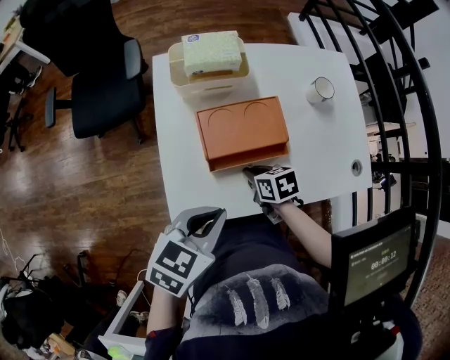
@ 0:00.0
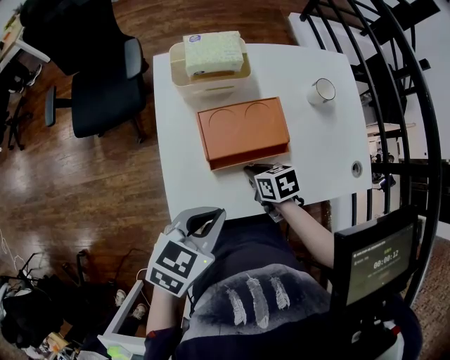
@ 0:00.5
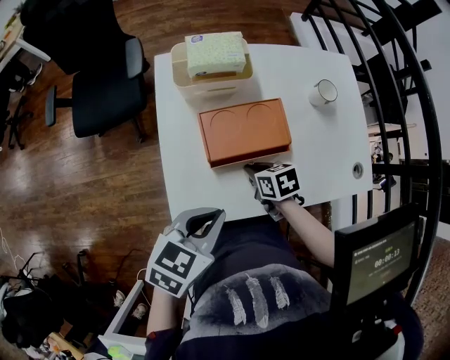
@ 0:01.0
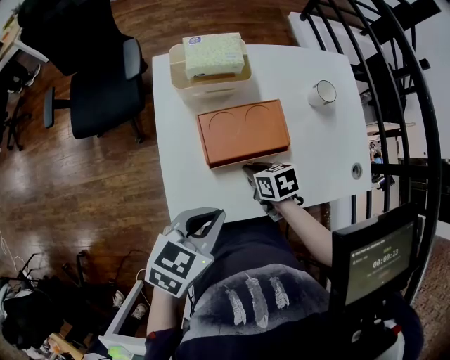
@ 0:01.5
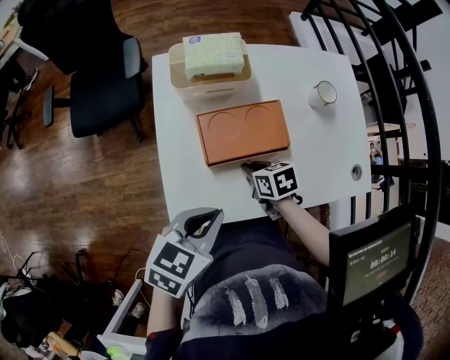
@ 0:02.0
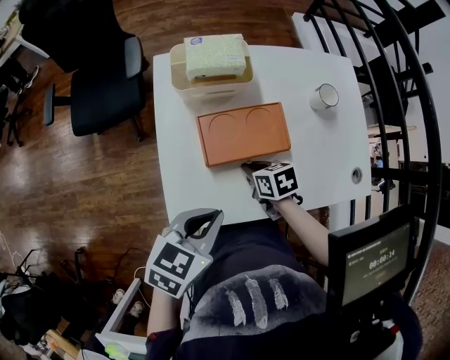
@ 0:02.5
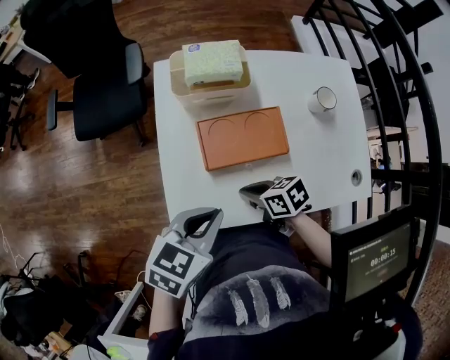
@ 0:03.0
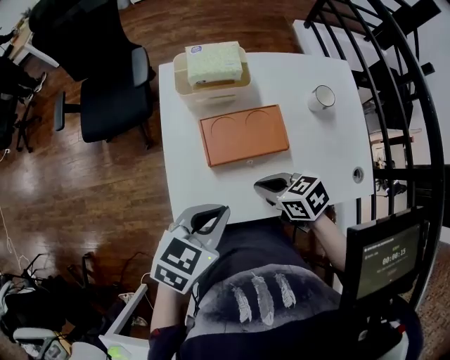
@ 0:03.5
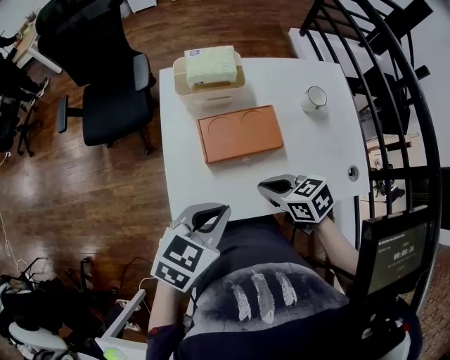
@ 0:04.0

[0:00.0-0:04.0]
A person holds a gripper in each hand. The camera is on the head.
0:00.0 to 0:02.0: There are only small adjustments of the grippers.
0:02.0 to 0:04.0: The left gripper moves about 5 cm. The right gripper travels upward by about 10 cm, and turns by about 20 degrees.

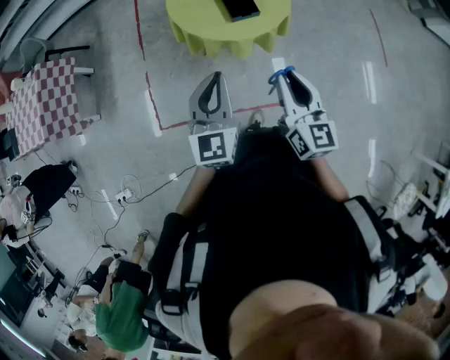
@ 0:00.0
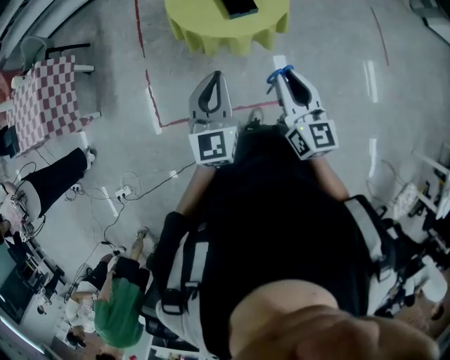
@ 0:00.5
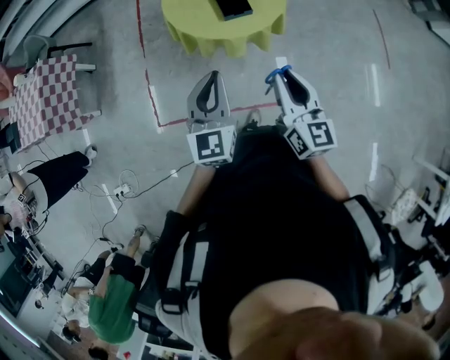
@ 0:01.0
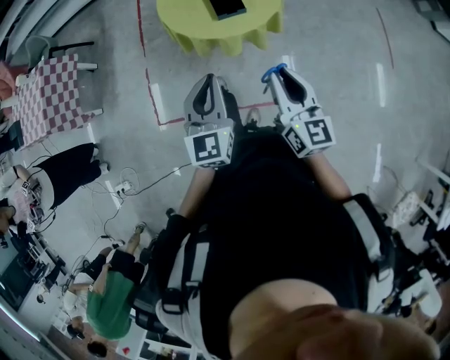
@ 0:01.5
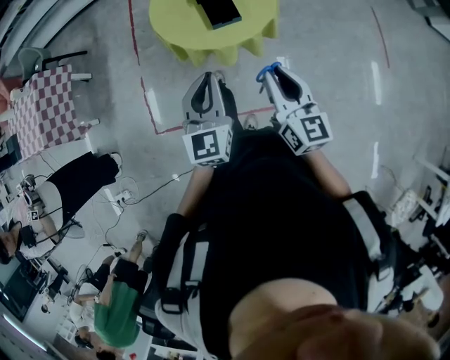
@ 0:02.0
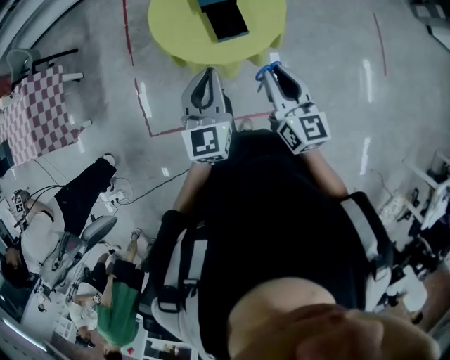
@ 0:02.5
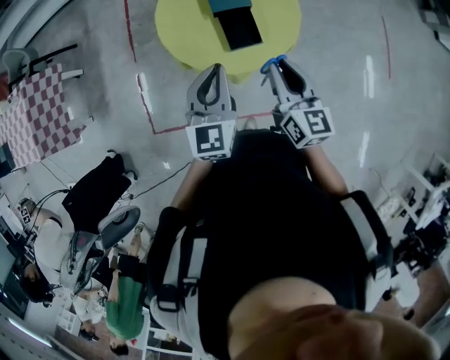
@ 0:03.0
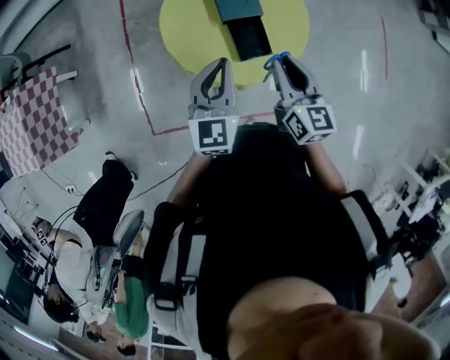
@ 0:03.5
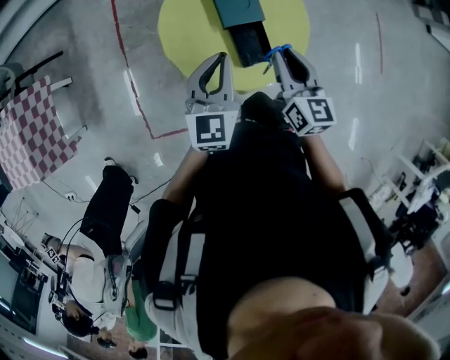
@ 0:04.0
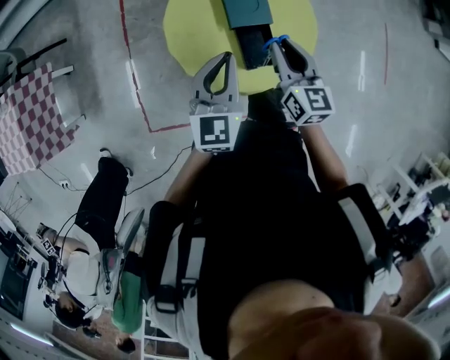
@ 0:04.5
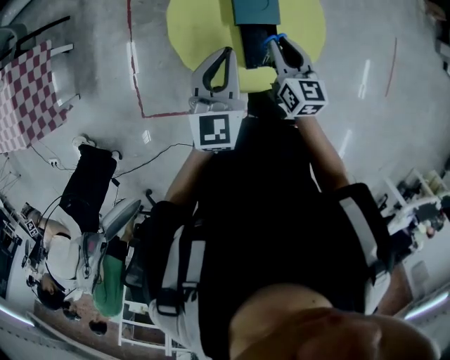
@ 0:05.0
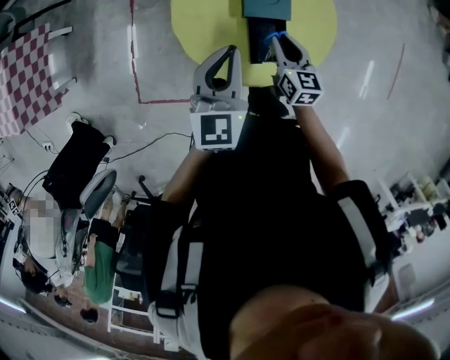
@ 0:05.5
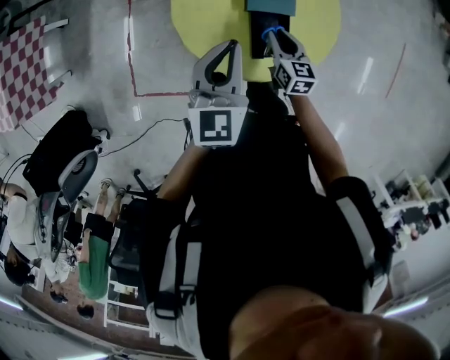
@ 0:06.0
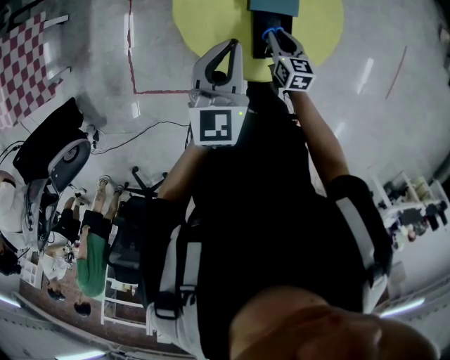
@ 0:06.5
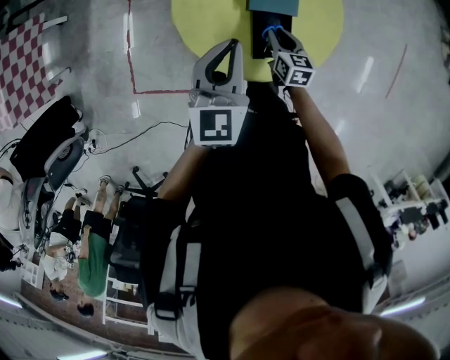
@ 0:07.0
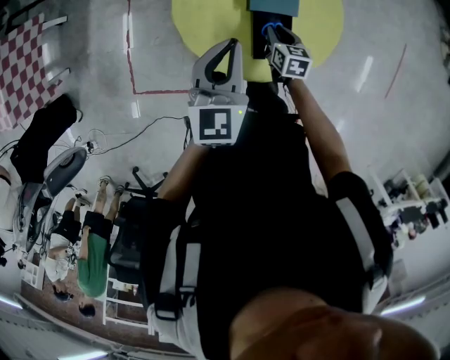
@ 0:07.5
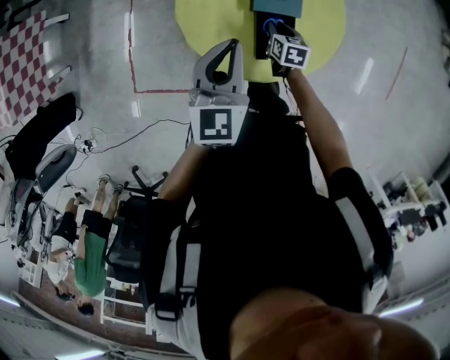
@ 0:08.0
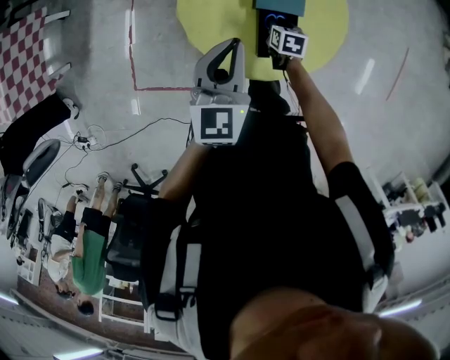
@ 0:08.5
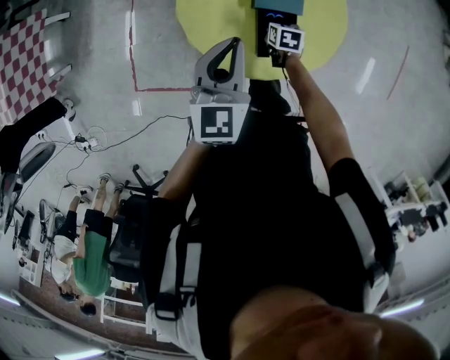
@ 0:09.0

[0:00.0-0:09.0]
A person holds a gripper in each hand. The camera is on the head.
0:00.0 to 0:02.0: Both grippers move to the right and forward, some 10 cm.
0:02.0 to 0:04.5: The grippers both shift forward by approximately 40 cm.
0:04.5 to 0:07.0: The right gripper is displaced downward by some 25 cm, and rotates about 20 degrees.
0:07.0 to 0:09.0: The right gripper is displaced downward by approximately 10 cm, and swivels roughly 20 degrees.

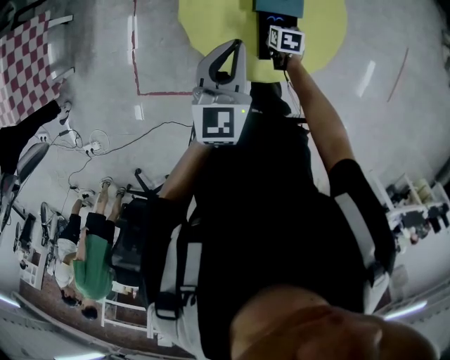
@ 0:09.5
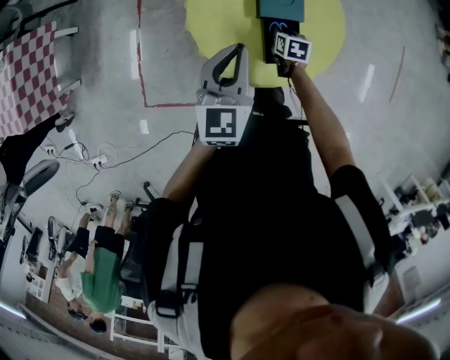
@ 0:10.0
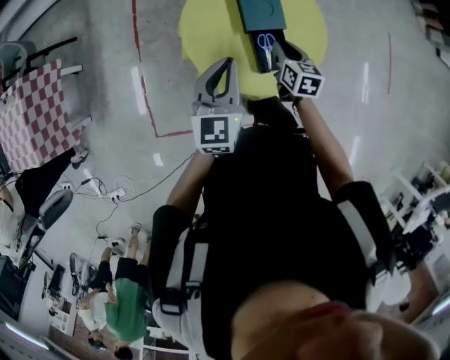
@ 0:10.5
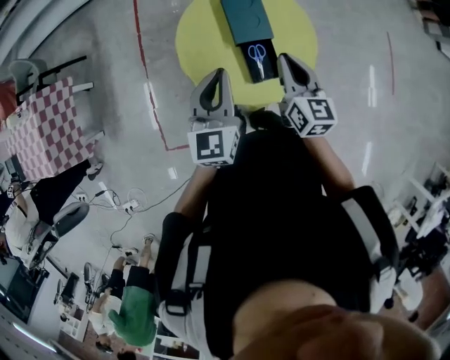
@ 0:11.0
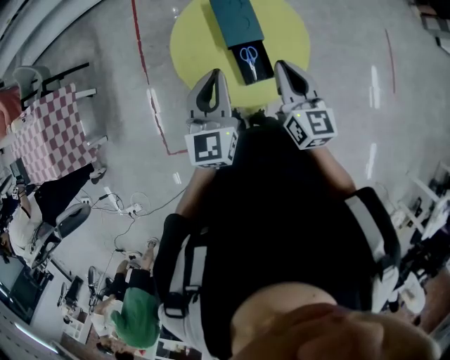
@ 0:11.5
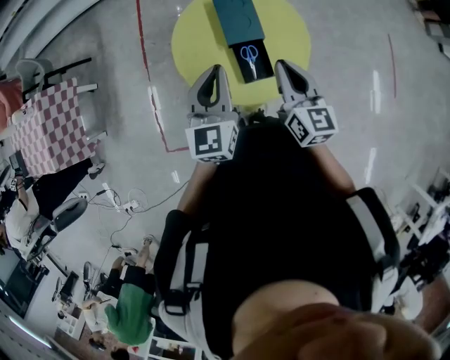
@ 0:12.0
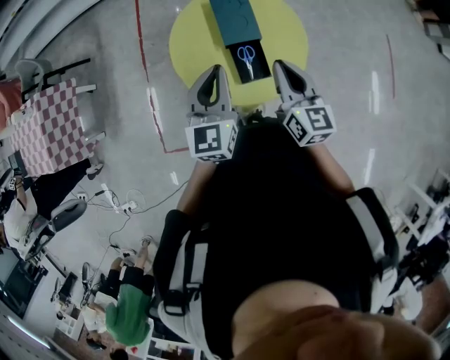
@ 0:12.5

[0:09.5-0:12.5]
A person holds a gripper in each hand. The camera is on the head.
0:09.5 to 0:11.0: The right gripper goes some 35 cm upward, and tilts its fingers some 50 degrees upward. Meanwhile the left gripper is displaced upward by approximately 10 cm.
0:11.0 to 0:12.5: The left gripper heads to the right, covering about 5 cm, while the right gripper ends up roughly 5 cm from where it was.

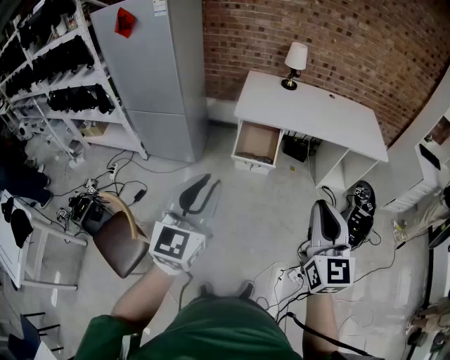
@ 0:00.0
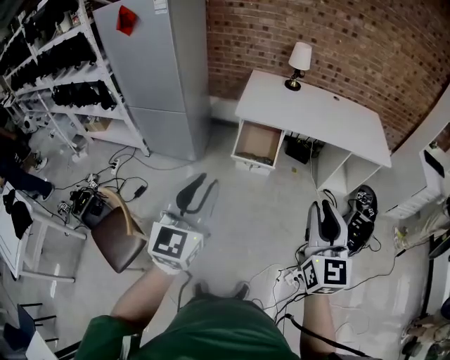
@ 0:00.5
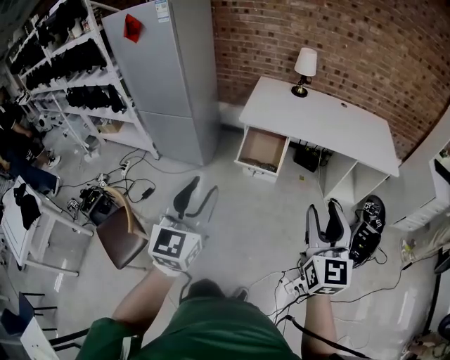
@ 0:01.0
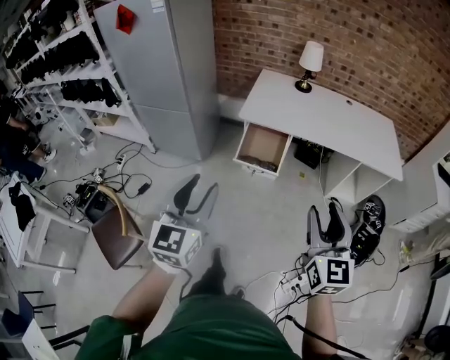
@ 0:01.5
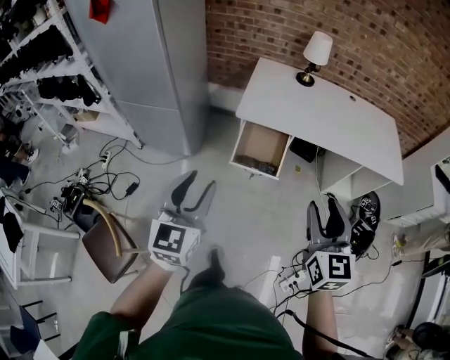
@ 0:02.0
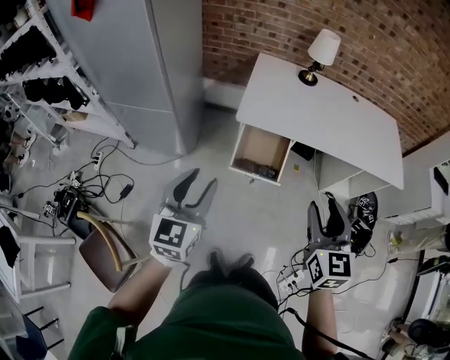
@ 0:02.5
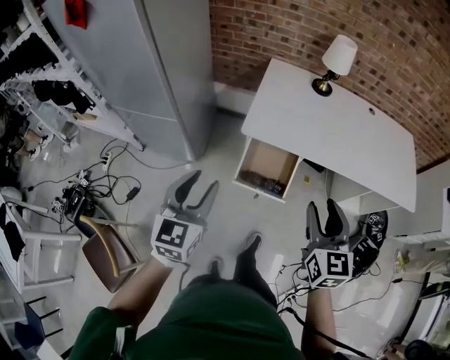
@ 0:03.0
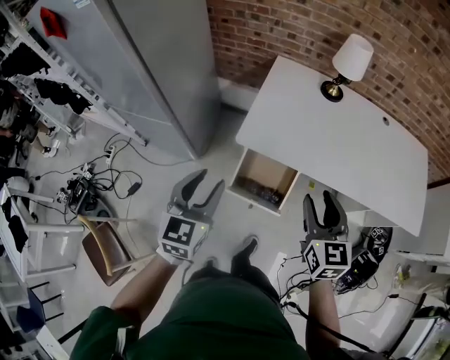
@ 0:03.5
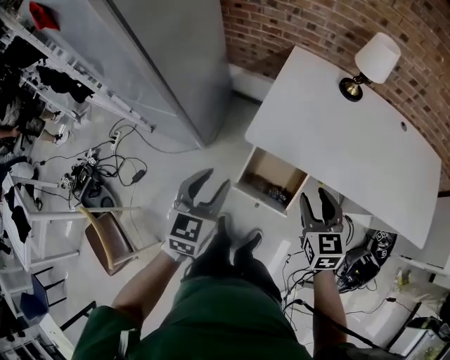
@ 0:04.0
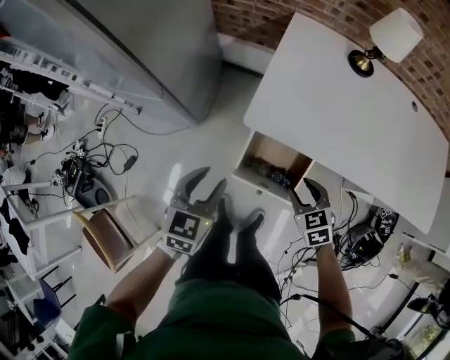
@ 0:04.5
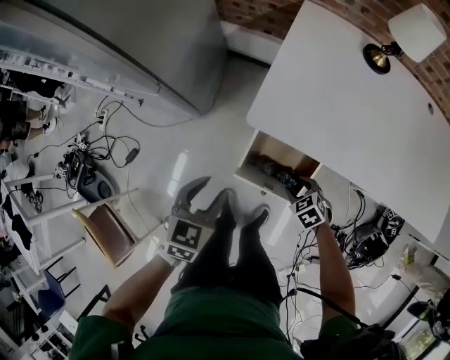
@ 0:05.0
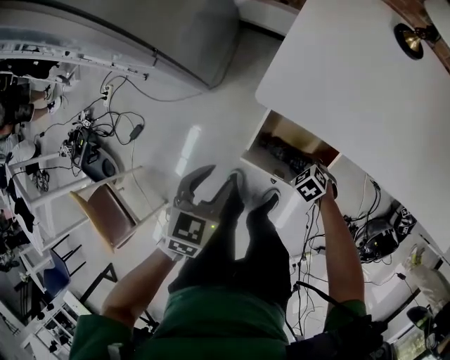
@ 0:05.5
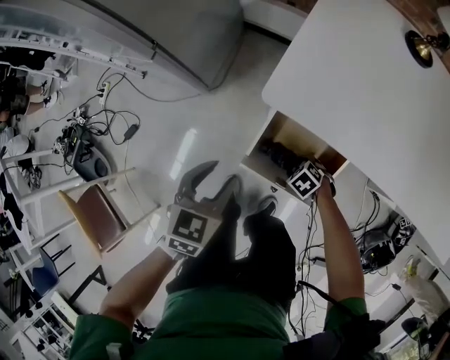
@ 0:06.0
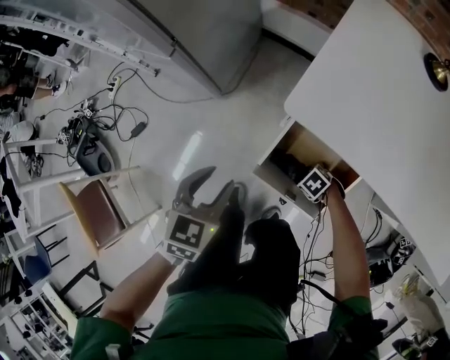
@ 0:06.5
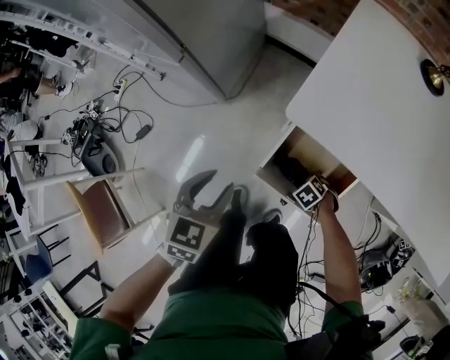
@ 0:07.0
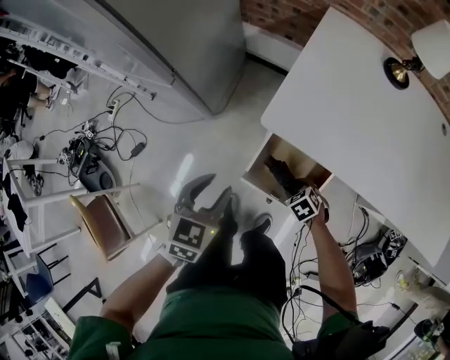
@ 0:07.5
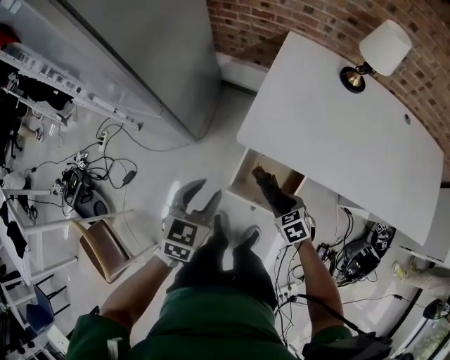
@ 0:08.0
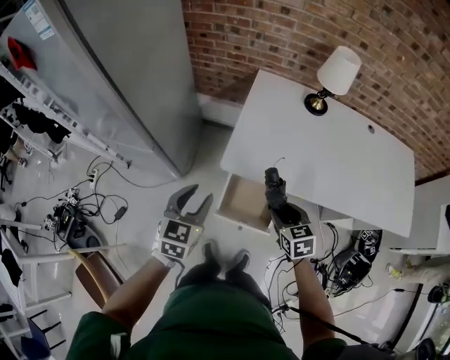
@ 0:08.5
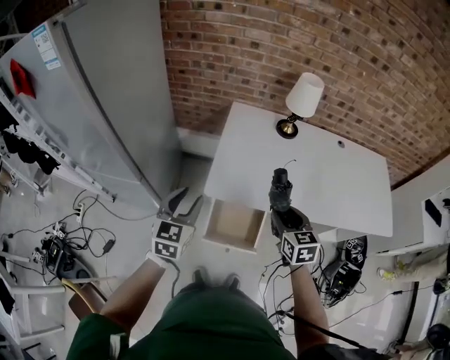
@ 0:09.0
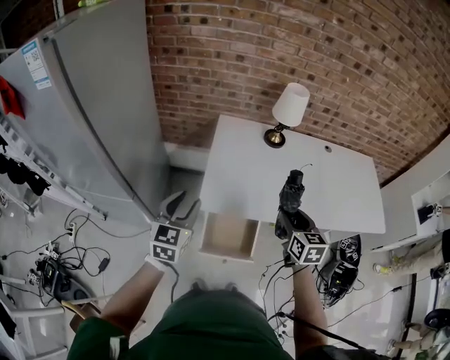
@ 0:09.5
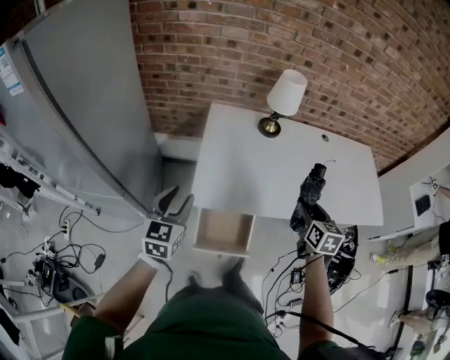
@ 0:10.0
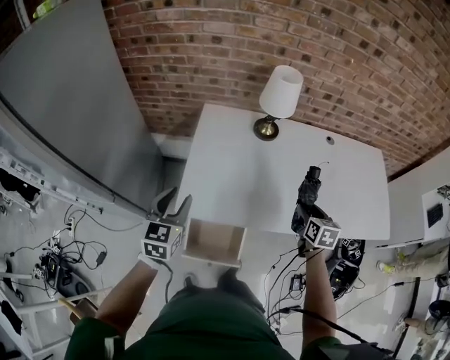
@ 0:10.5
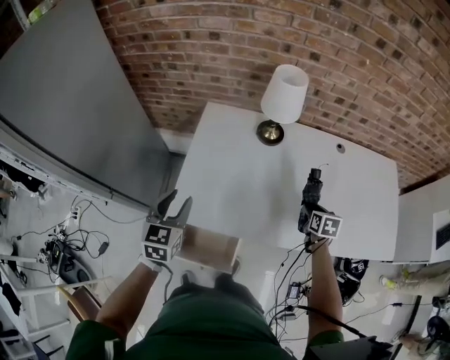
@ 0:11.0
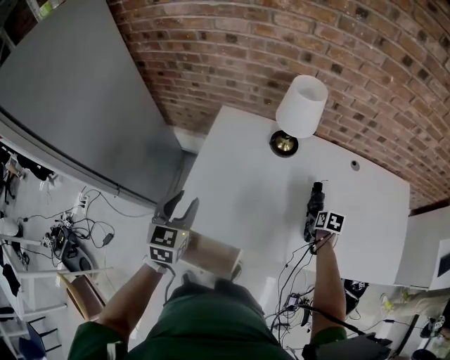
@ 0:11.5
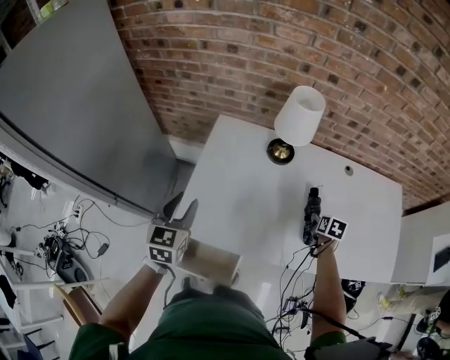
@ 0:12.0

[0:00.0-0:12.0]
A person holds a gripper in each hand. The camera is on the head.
0:00.0 to 0:02.0: Both grippers move forward, about 25 cm. The right gripper opens its fingers. Meanwhile the left gripper opens its fingers.
0:02.0 to 0:04.0: The two grippers go roughly 40 cm forward and downward. The right gripper swivels some 30 degrees.
0:04.0 to 0:06.0: The right gripper shifts approximately 50 cm downward, and angles its fingers downward, by roughly 50 degrees; the left gripper shifts roughly 30 cm downward.
0:06.0 to 0:08.0: The two grippers go approximately 25 cm upward. The right gripper rotates roughly 30 degrees.
0:08.0 to 0:10.0: The right gripper moves upward, roughly 30 cm, and swivels approximately 60 degrees; the left gripper goes some 15 cm upward.
0:10.0 to 0:12.0: The left gripper is displaced forward and to the right by about 20 cm, while the right gripper travels forward, to the right and downward by roughly 35 cm, and rotates about 30 degrees.
